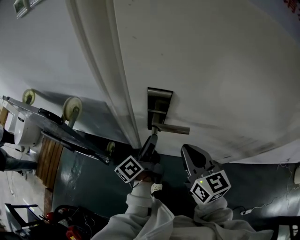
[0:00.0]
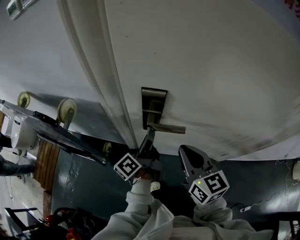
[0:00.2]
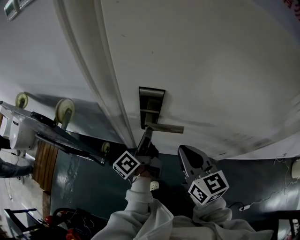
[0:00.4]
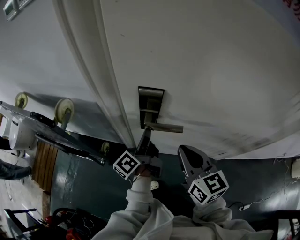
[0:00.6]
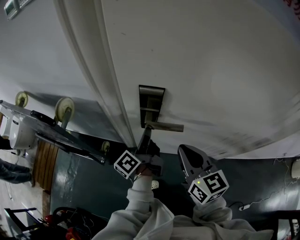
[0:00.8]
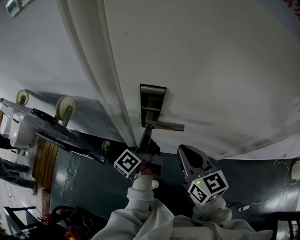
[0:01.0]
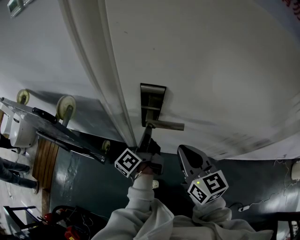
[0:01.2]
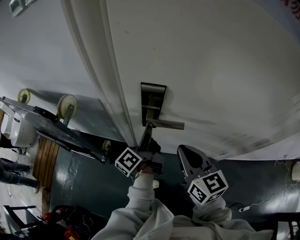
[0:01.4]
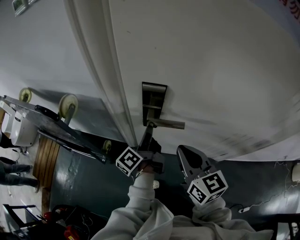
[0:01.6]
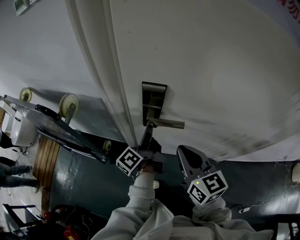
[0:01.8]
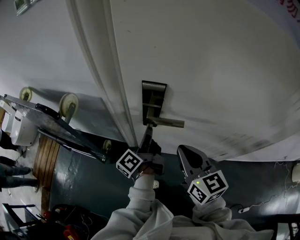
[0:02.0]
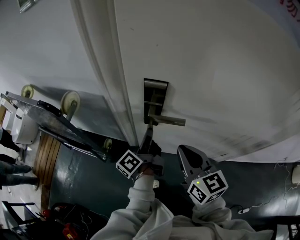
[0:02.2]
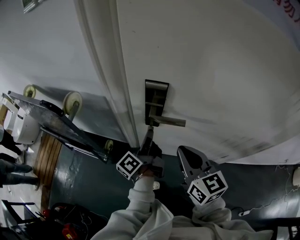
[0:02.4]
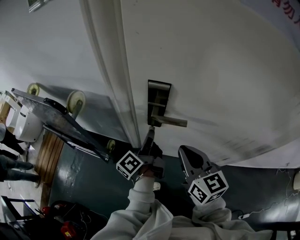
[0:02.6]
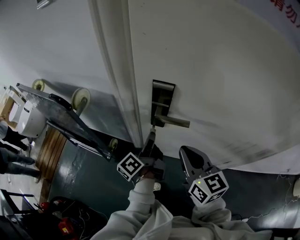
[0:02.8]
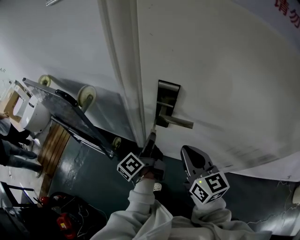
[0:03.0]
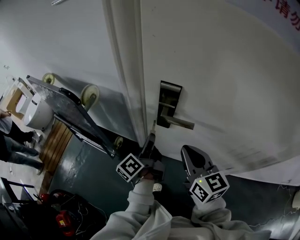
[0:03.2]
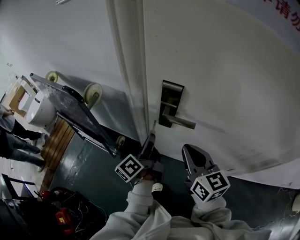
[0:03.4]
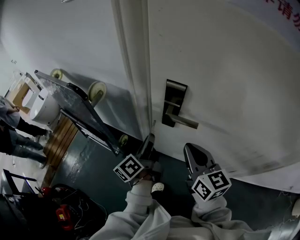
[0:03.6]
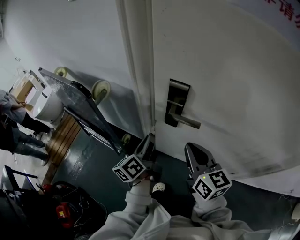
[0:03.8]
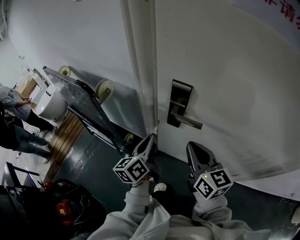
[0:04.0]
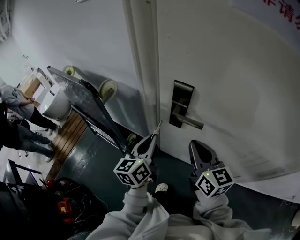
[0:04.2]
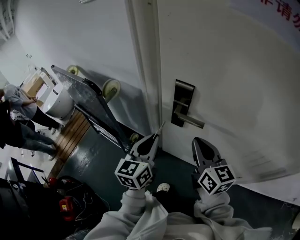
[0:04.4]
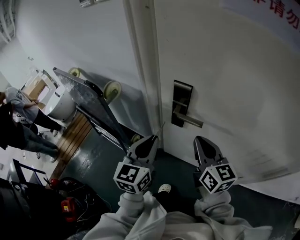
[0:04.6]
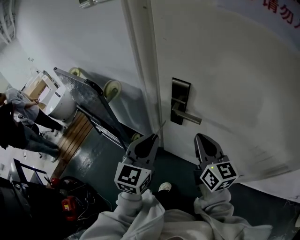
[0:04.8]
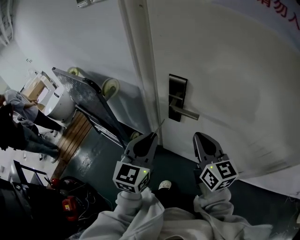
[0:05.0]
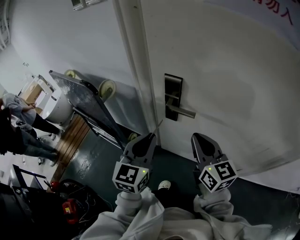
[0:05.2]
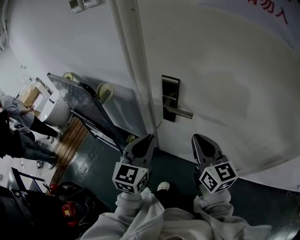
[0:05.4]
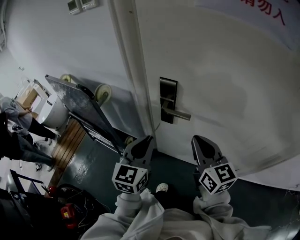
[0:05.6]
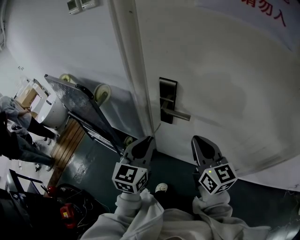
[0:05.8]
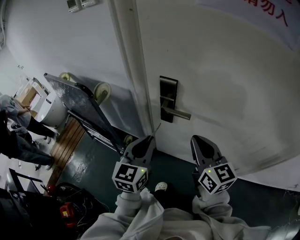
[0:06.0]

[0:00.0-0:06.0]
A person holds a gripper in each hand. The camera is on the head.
0:00.0 to 0:01.6: The left gripper closes.
0:01.6 to 0:03.0: The left gripper changes place by approximately 5 cm.
0:03.0 to 0:04.4: The left gripper is displaced upward and backward by about 10 cm, and rolls clockwise, seen from behind, by approximately 60 degrees.
0:04.4 to 0:06.0: The left gripper moves about 5 cm; the right gripper shifts by roughly 5 cm.

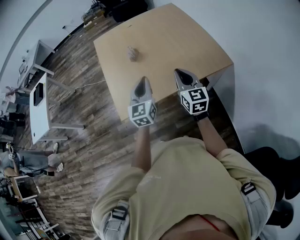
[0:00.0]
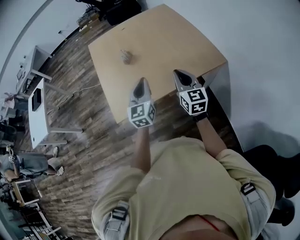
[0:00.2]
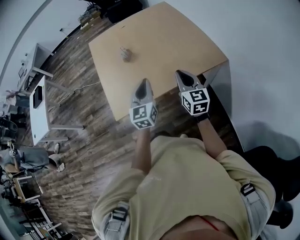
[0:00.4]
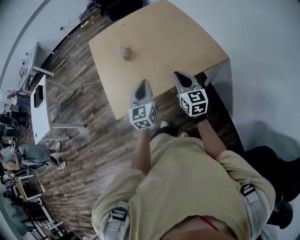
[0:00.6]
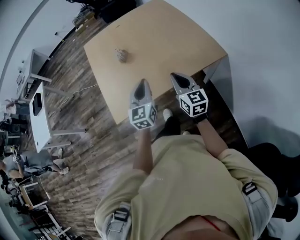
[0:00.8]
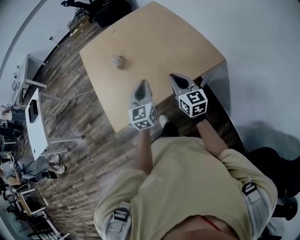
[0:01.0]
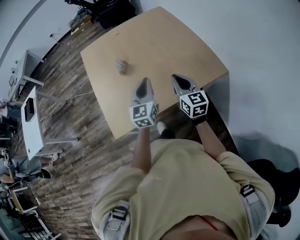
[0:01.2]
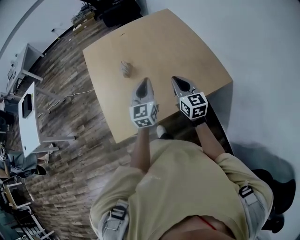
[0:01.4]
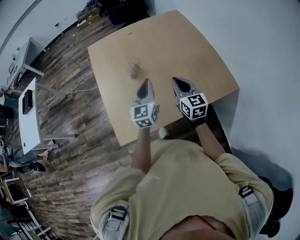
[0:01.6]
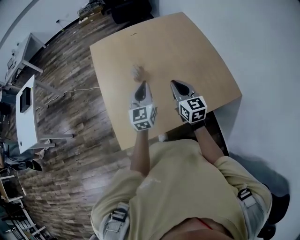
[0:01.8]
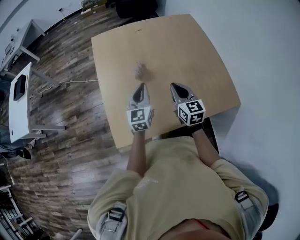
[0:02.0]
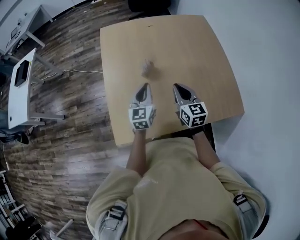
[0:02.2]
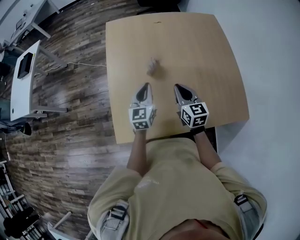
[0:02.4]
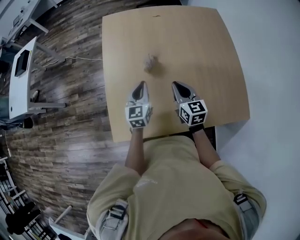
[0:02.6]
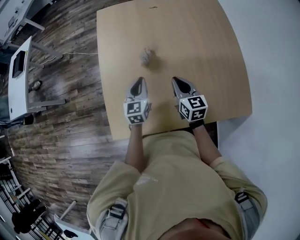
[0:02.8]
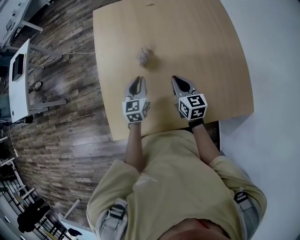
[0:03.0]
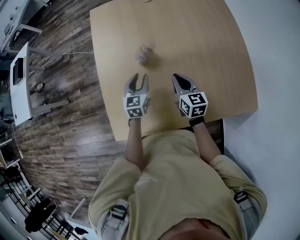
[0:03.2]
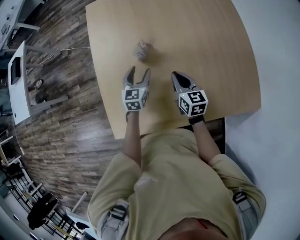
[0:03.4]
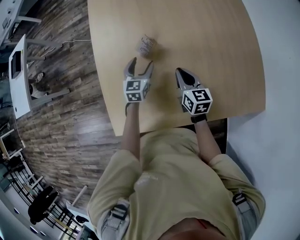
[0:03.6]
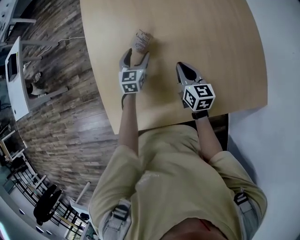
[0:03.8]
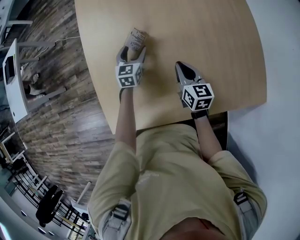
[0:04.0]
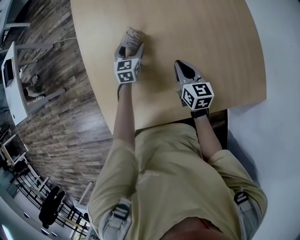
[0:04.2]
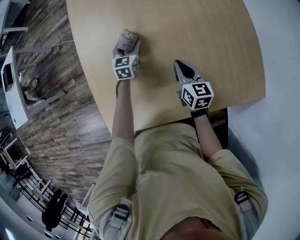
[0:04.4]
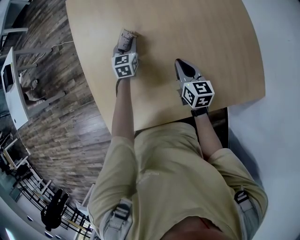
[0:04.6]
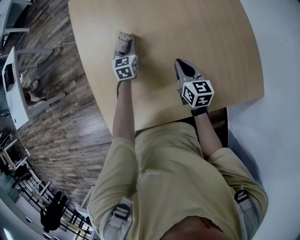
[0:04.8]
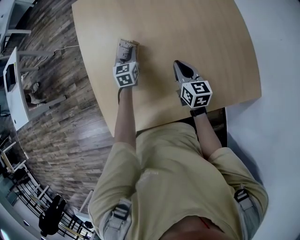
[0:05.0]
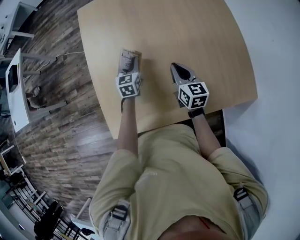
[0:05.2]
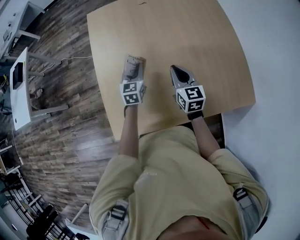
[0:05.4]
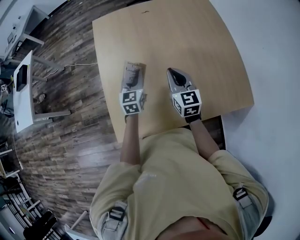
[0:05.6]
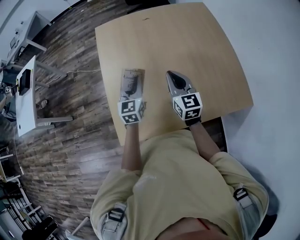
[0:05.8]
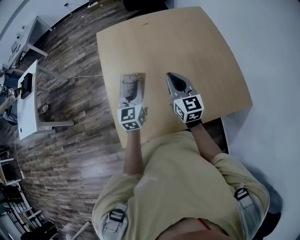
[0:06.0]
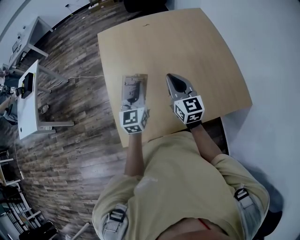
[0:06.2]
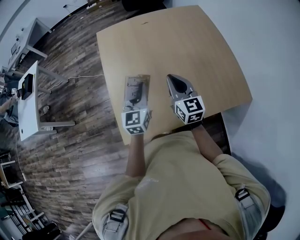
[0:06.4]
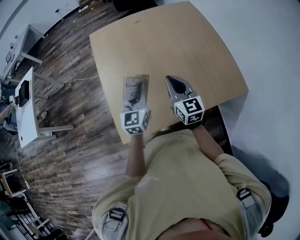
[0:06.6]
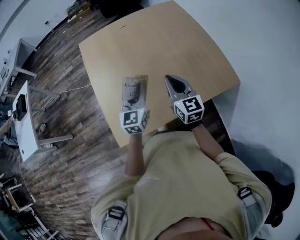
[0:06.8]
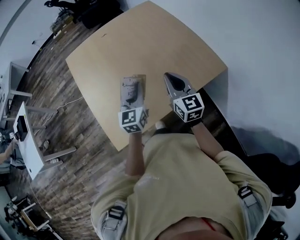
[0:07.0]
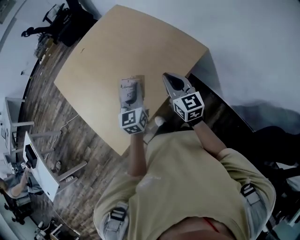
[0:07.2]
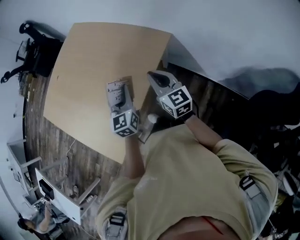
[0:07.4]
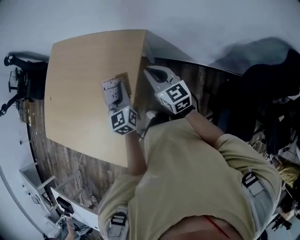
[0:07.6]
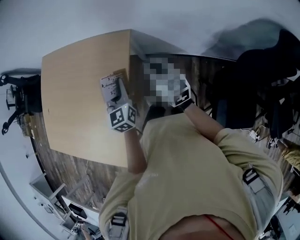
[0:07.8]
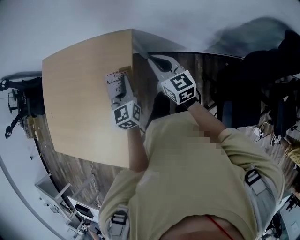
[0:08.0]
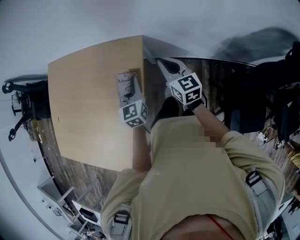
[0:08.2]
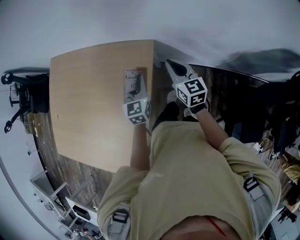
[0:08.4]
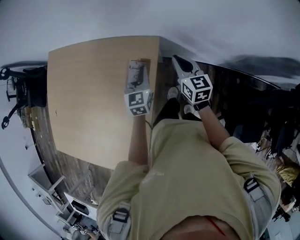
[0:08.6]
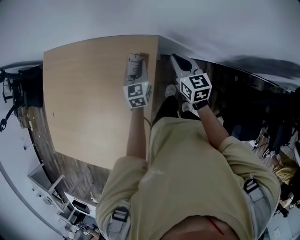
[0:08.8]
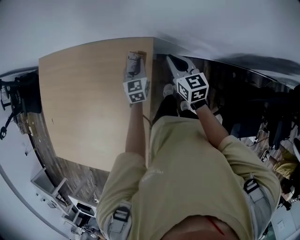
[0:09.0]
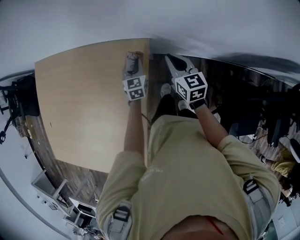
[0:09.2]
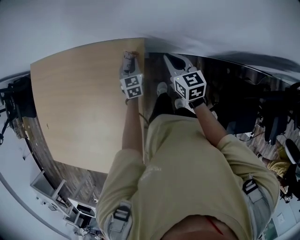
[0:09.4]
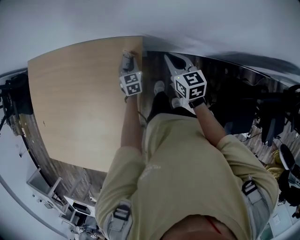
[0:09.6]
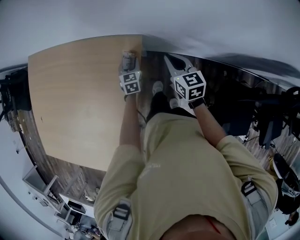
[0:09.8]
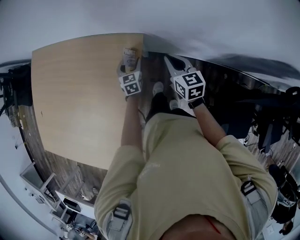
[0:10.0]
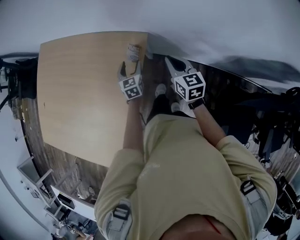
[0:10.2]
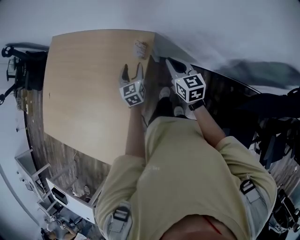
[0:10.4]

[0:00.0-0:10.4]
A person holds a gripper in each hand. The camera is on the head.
0:00.0 to 0:01.4: Both grippers travel together forward, about 15 cm.
0:01.4 to 0:03.0: The right gripper heads forward, downward and to the left, covering about 25 cm, and changes its angle by approximately 20 degrees, while the left gripper travels downward, forward and to the left by about 30 cm, and turns by approximately 20 degrees.
0:03.0 to 0:04.4: The right gripper goes roughly 10 cm downward; the left gripper moves forward and downward, some 20 cm, and opens up.
0:04.4 to 0:06.0: The right gripper moves upward, about 20 cm, and changes its angle by some 30 degrees. Meanwhile the left gripper moves upward and backward, some 30 cm, swivels some 20 degrees, and closes its fingers.
0:06.0 to 0:07.4: The right gripper changes place by some 35 cm, and turns by about 40 degrees; the left gripper moves approximately 35 cm, and changes its angle by about 40 degrees.
0:07.4 to 0:09.0: The right gripper goes some 35 cm forward, to the right and downward, and swivels some 30 degrees. Meanwhile the left gripper heads forward, downward and to the right, covering roughly 40 cm, and swivels about 30 degrees.
0:09.0 to 0:10.4: Both grippers travel together backward, some 10 cm. The left gripper opens.

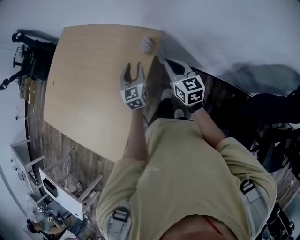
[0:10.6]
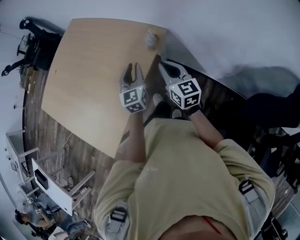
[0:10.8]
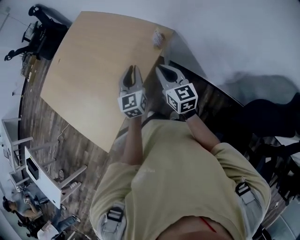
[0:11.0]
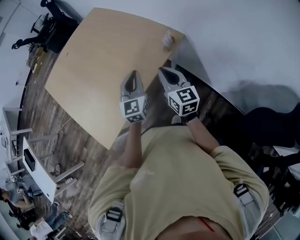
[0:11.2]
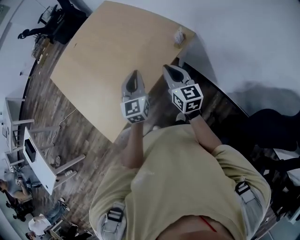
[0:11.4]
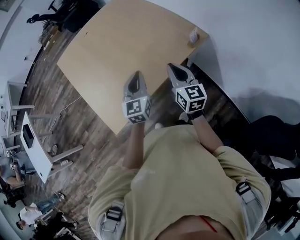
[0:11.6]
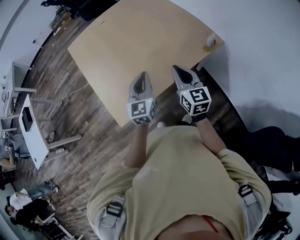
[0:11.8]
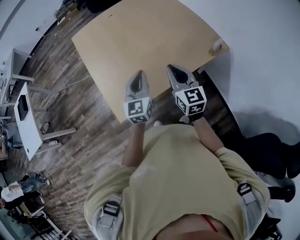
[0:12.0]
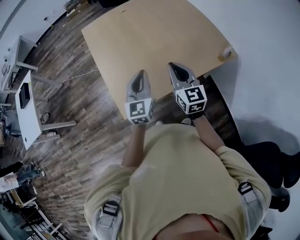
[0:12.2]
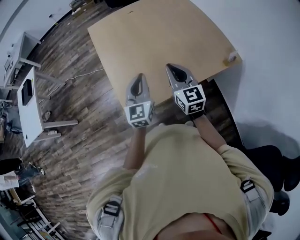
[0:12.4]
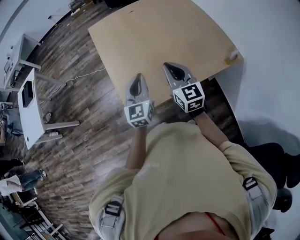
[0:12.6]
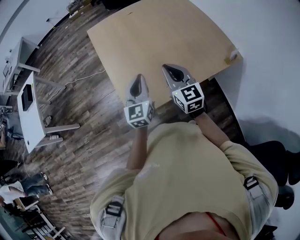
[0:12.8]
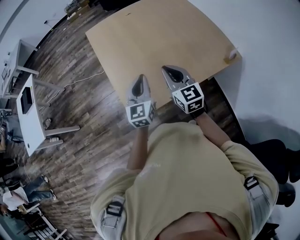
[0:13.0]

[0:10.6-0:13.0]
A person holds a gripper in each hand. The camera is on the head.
0:10.6 to 0:11.8: The left gripper shifts roughly 35 cm to the left and backward, swivels approximately 30 degrees, and closes; the right gripper shifts about 30 cm to the left, and turns by approximately 30 degrees.
0:11.8 to 0:13.0: The two grippers go approximately 20 cm to the left. The right gripper turns by roughly 20 degrees.

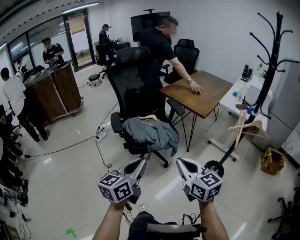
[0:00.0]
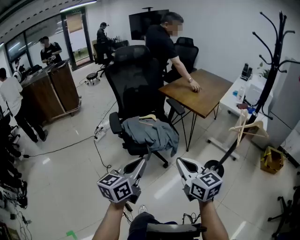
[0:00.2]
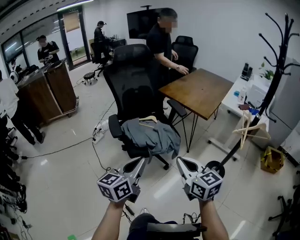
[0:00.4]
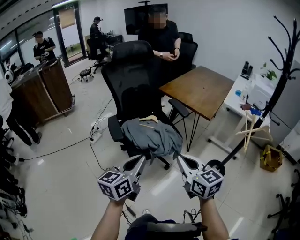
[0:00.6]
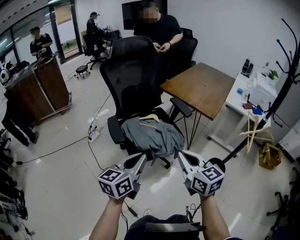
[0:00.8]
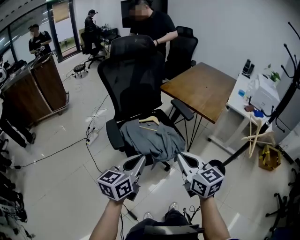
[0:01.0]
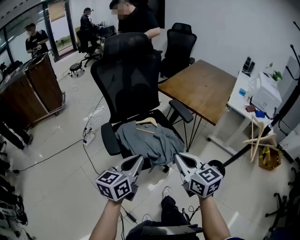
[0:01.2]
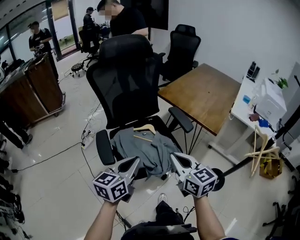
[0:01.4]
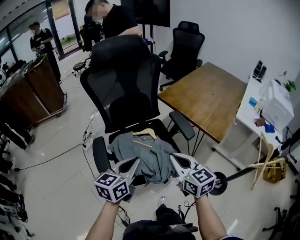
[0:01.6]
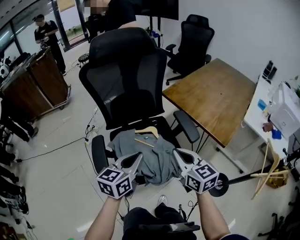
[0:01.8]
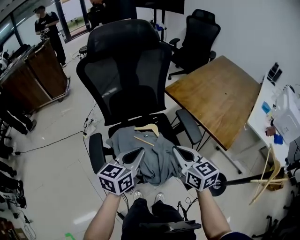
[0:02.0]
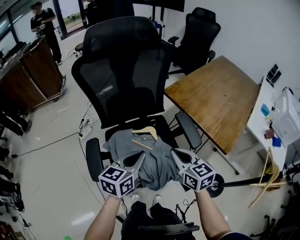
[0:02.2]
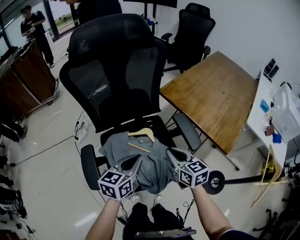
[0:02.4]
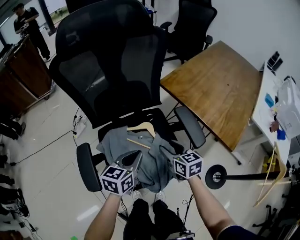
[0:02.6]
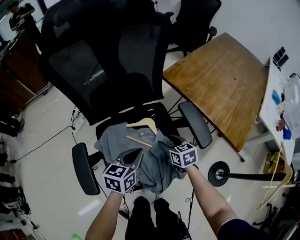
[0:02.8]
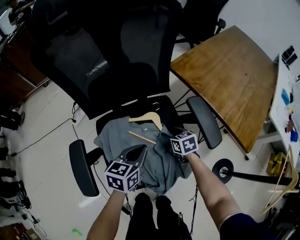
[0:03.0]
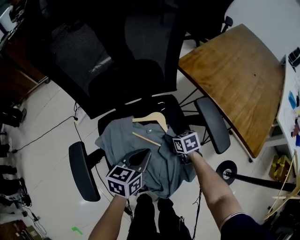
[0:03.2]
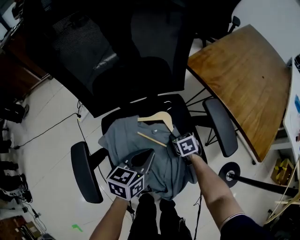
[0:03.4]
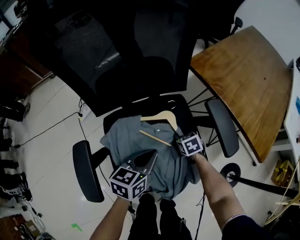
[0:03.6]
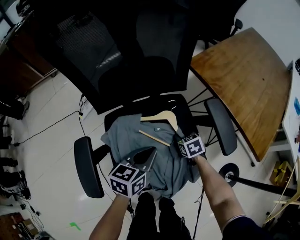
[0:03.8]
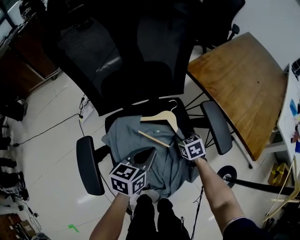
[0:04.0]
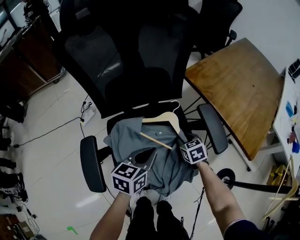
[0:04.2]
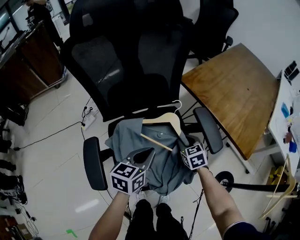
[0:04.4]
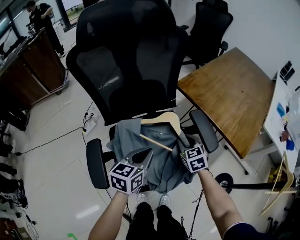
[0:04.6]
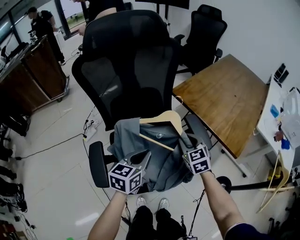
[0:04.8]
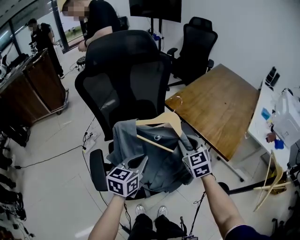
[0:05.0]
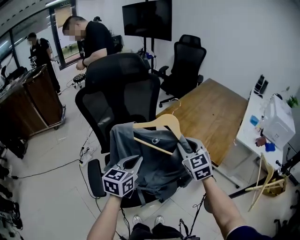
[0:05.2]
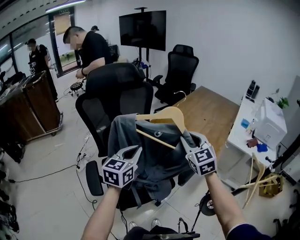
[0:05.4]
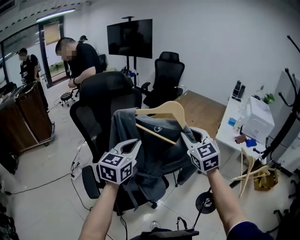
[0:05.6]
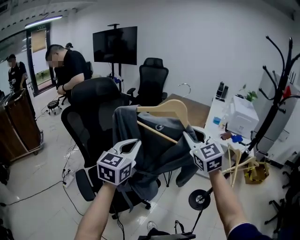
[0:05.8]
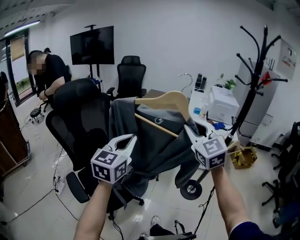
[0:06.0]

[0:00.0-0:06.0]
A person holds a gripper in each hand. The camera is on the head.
0:00.0 to 0:01.6: The grippers both shift forward by about 35 cm.
0:01.6 to 0:03.0: The right gripper heads downward and forward, covering roughly 40 cm, tilts its fingers about 30 degrees downward, and opens its fingers. The left gripper heads downward and forward, covering approximately 30 cm.
0:03.0 to 0:04.4: The two grippers go roughly 5 cm upward. The right gripper swivels approximately 20 degrees, and closes.
0:04.4 to 0:06.0: The grippers both shift upward by about 40 cm. The left gripper swivels roughly 40 degrees; the right gripper tilts its fingers about 40 degrees upward.
